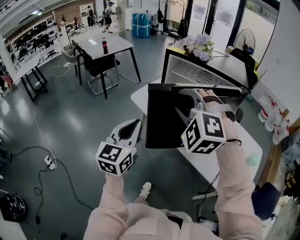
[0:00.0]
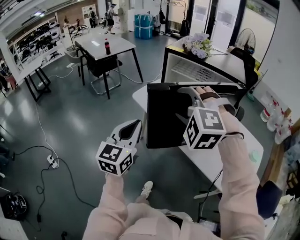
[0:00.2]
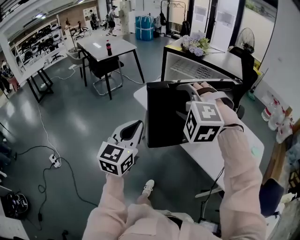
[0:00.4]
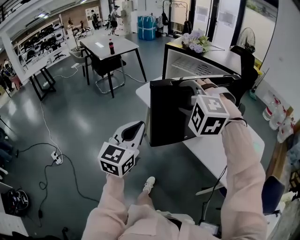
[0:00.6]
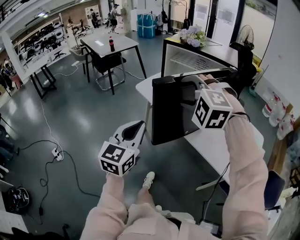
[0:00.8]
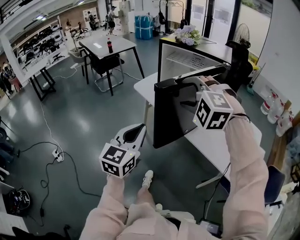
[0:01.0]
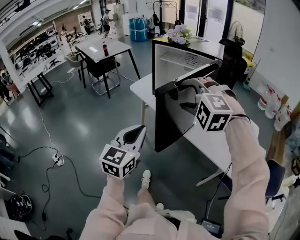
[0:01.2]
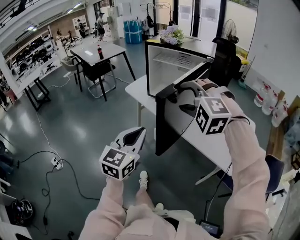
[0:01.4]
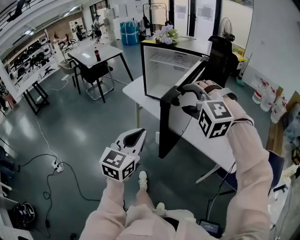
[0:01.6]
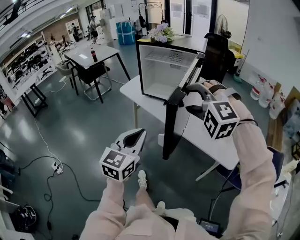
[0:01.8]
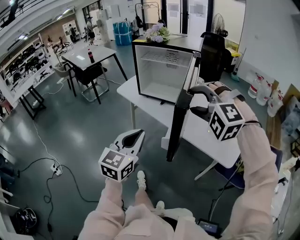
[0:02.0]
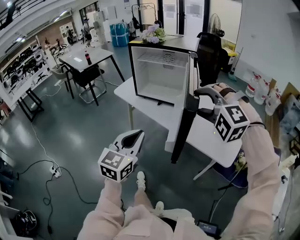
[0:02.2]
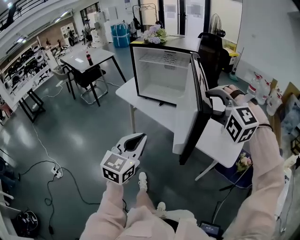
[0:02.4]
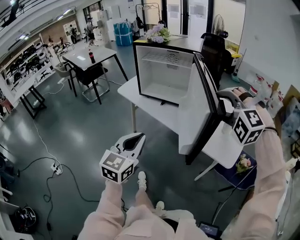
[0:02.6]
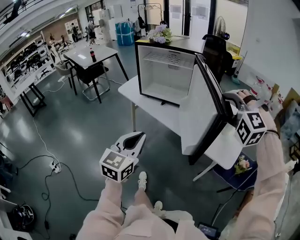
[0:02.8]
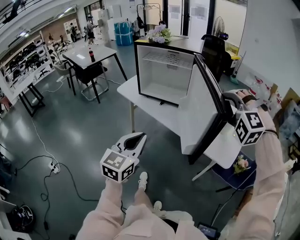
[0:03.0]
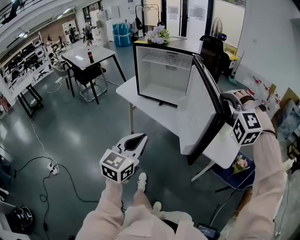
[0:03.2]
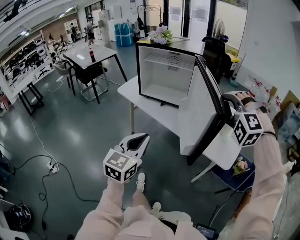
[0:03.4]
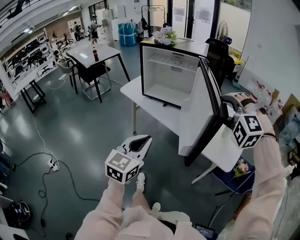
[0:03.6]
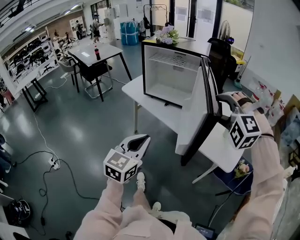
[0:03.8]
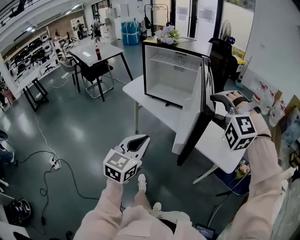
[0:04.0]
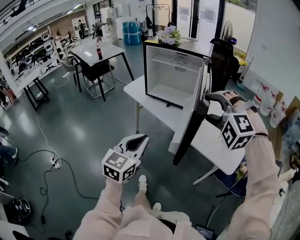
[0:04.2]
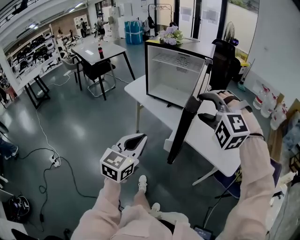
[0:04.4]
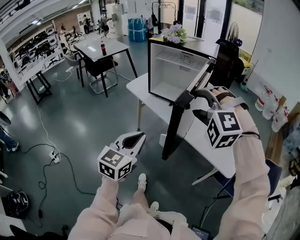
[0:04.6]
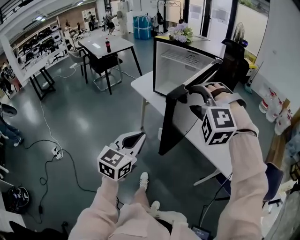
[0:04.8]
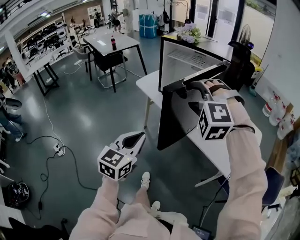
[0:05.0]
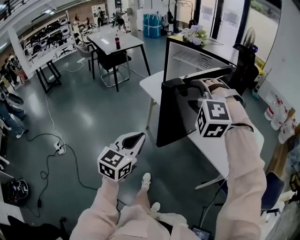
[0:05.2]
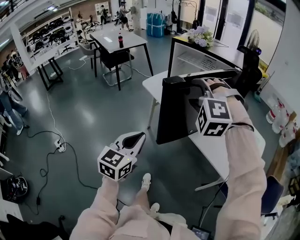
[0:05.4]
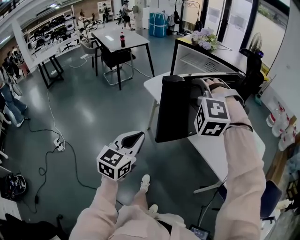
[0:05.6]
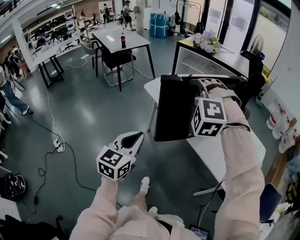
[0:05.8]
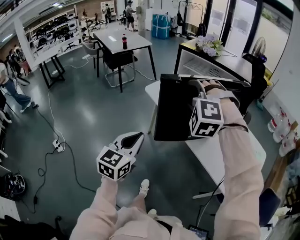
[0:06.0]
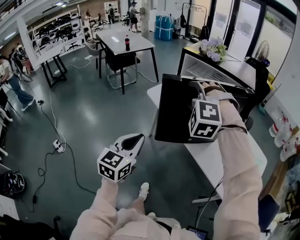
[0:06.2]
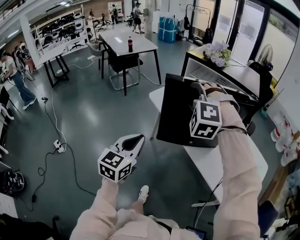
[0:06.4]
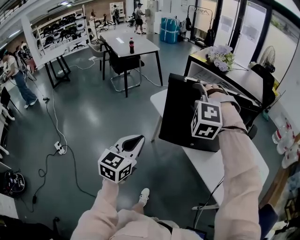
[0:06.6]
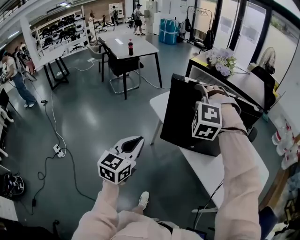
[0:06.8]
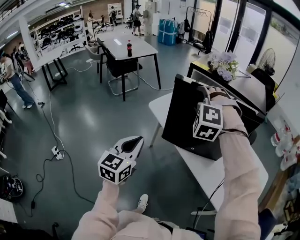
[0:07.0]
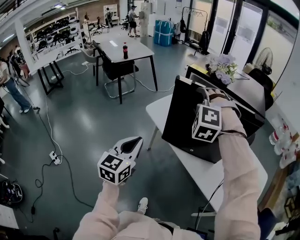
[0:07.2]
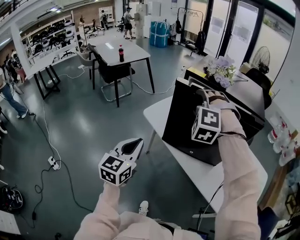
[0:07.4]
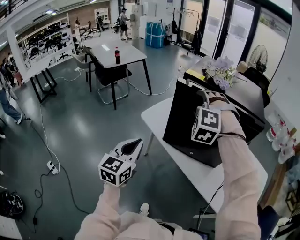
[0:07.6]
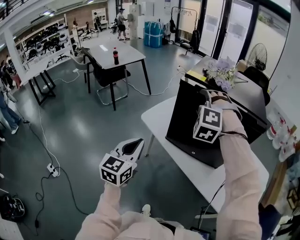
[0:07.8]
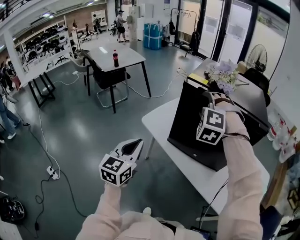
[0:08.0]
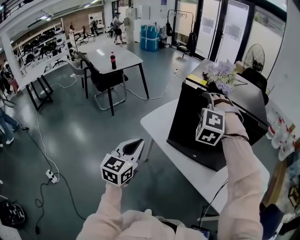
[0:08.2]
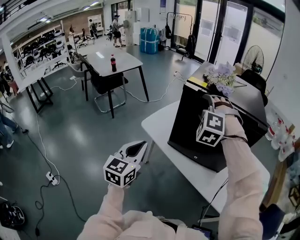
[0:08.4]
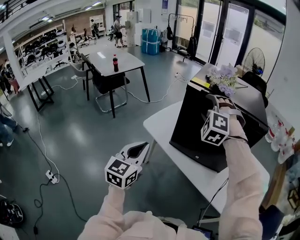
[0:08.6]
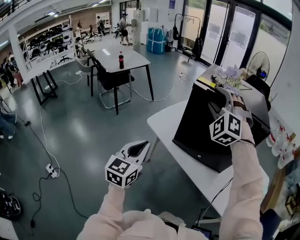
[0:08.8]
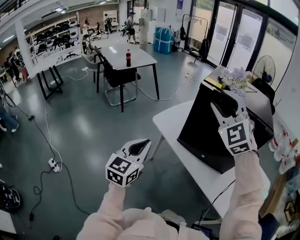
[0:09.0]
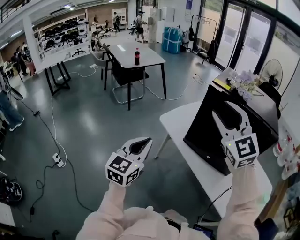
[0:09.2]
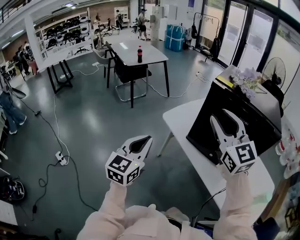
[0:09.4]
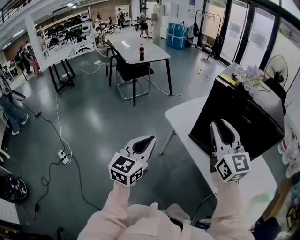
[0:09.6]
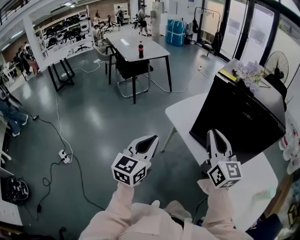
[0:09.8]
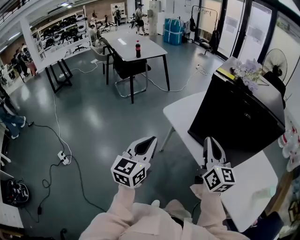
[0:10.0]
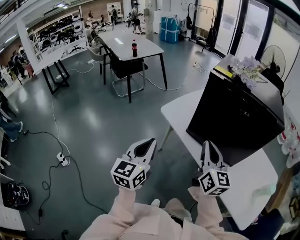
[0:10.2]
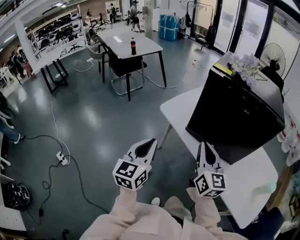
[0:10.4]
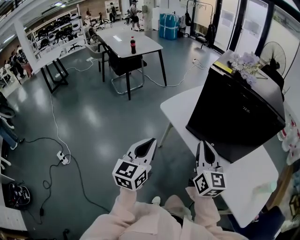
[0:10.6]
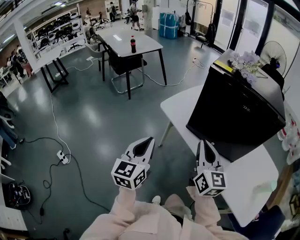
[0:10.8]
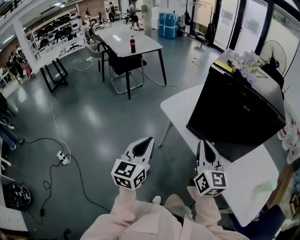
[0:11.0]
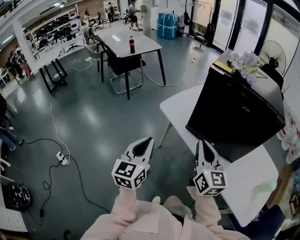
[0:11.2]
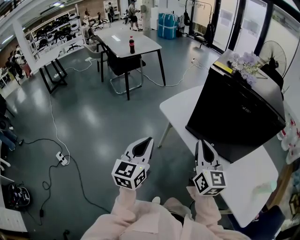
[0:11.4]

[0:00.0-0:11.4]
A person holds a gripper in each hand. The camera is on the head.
0:00.0 to 0:01.4: The two grippers go roughly 20 cm backward and to the right. The right gripper opens its fingers.
0:01.4 to 0:02.8: The right gripper moves to the right, some 20 cm.
0:02.8 to 0:04.2: The right gripper heads to the left, covering roughly 10 cm.
0:04.2 to 0:05.6: The right gripper shifts roughly 20 cm to the left and forward, while the left gripper moves to the left and forward, approximately 10 cm.
0:05.6 to 0:07.2: The left gripper heads forward and to the left, covering about 20 cm. Meanwhile the right gripper is displaced forward by roughly 25 cm.
0:07.2 to 0:08.6: The grippers both shift forward by approximately 5 cm.
0:08.6 to 0:10.0: The left gripper goes some 5 cm backward. Meanwhile the right gripper goes about 20 cm backward and downward, rolls clockwise, seen from behind, by roughly 100 degrees, and closes.
0:10.0 to 0:11.4: There are only small adjustments of the grippers.

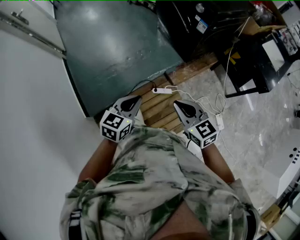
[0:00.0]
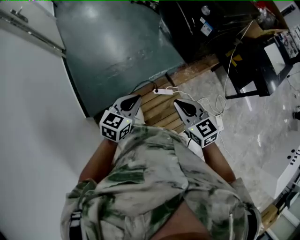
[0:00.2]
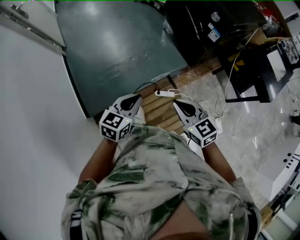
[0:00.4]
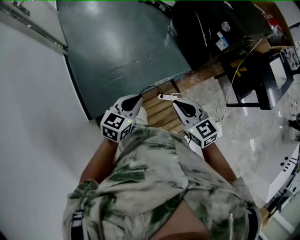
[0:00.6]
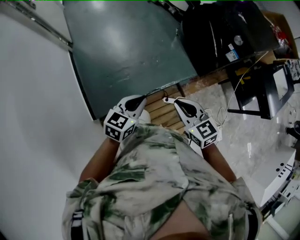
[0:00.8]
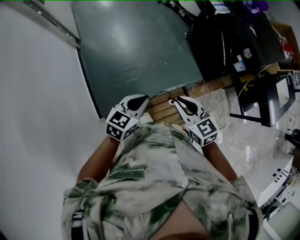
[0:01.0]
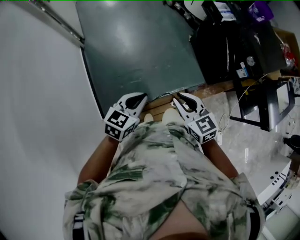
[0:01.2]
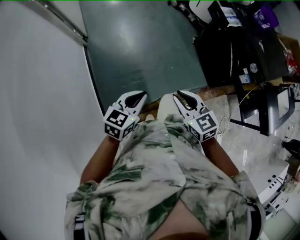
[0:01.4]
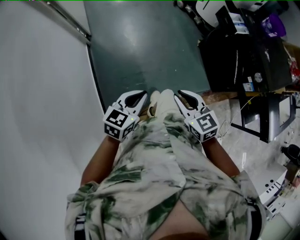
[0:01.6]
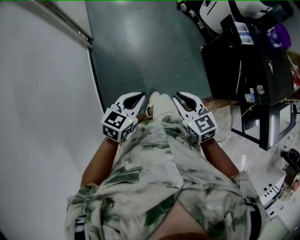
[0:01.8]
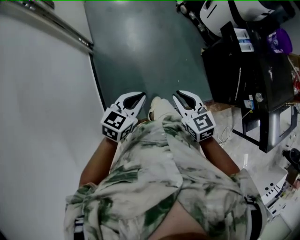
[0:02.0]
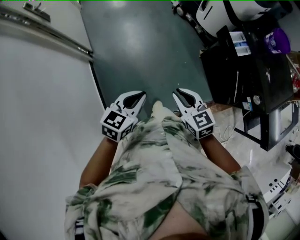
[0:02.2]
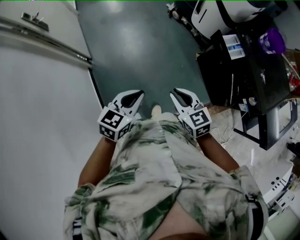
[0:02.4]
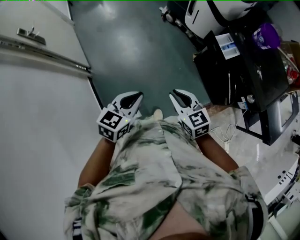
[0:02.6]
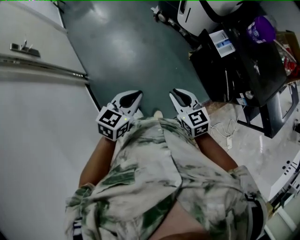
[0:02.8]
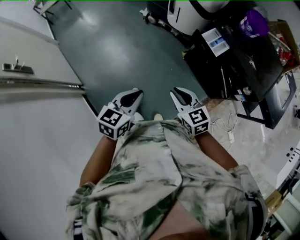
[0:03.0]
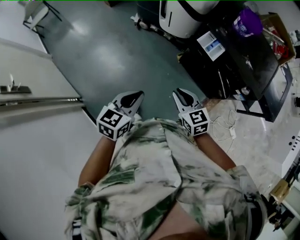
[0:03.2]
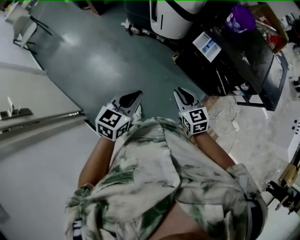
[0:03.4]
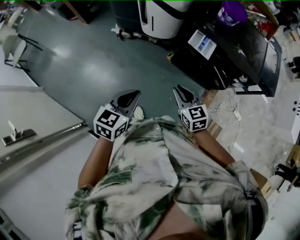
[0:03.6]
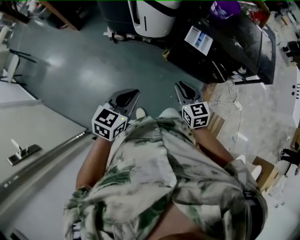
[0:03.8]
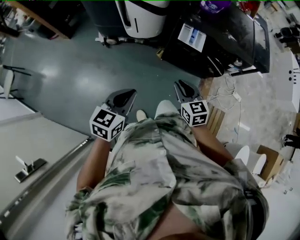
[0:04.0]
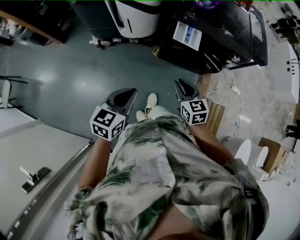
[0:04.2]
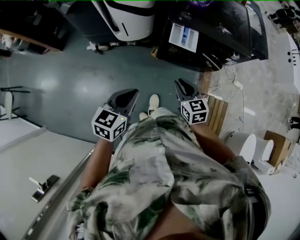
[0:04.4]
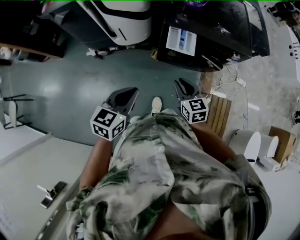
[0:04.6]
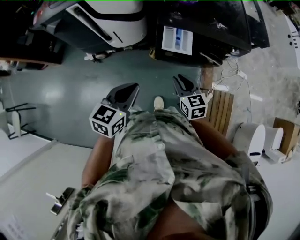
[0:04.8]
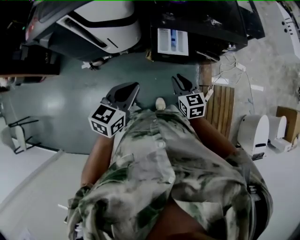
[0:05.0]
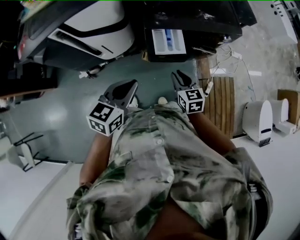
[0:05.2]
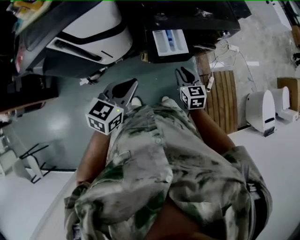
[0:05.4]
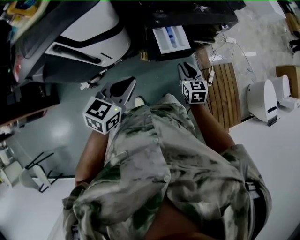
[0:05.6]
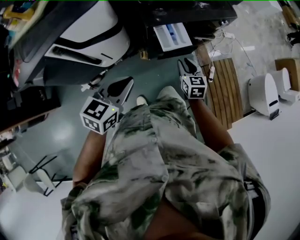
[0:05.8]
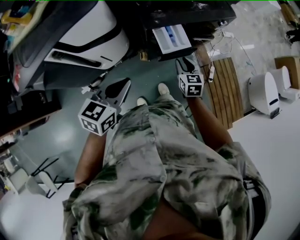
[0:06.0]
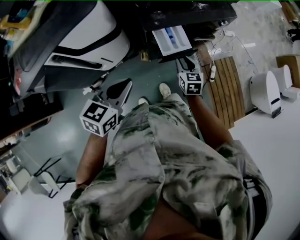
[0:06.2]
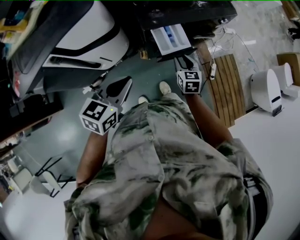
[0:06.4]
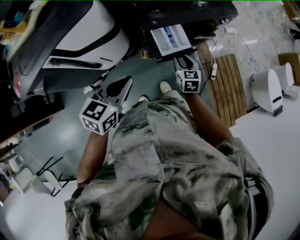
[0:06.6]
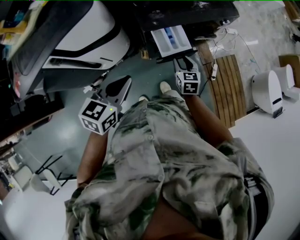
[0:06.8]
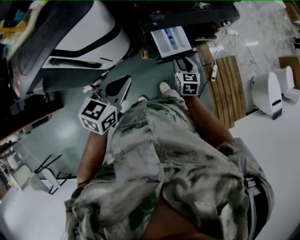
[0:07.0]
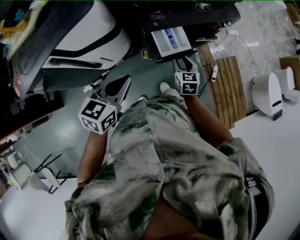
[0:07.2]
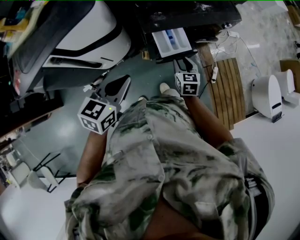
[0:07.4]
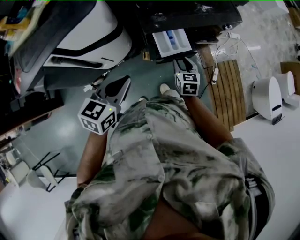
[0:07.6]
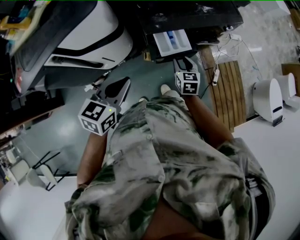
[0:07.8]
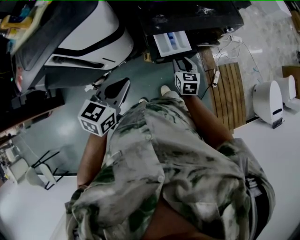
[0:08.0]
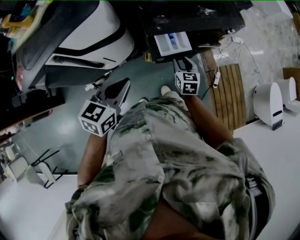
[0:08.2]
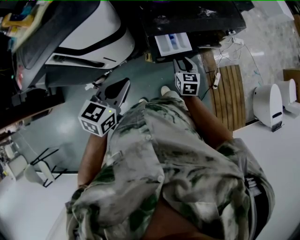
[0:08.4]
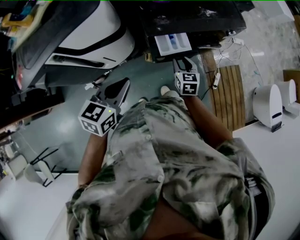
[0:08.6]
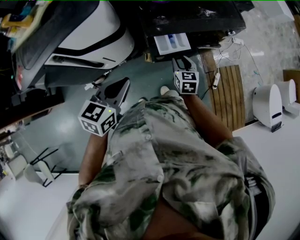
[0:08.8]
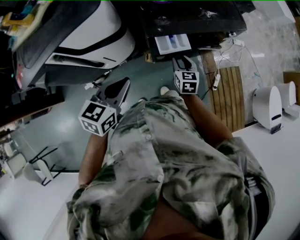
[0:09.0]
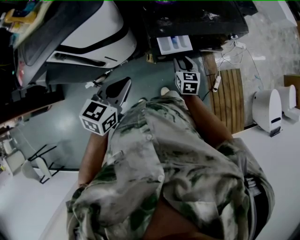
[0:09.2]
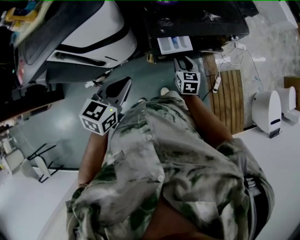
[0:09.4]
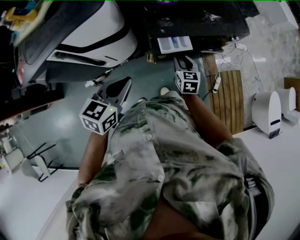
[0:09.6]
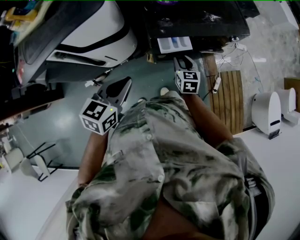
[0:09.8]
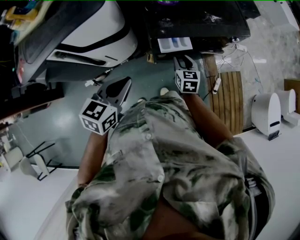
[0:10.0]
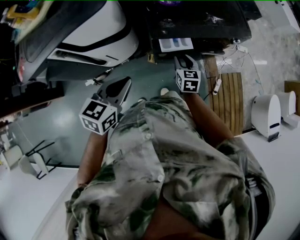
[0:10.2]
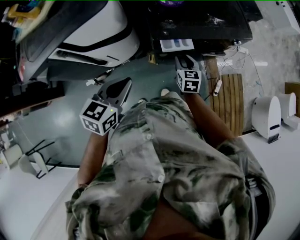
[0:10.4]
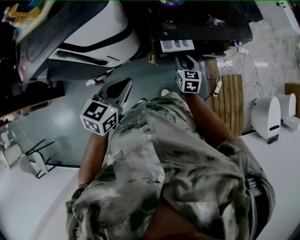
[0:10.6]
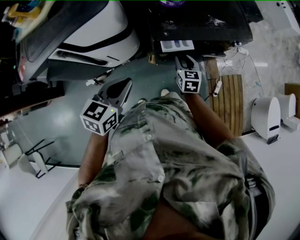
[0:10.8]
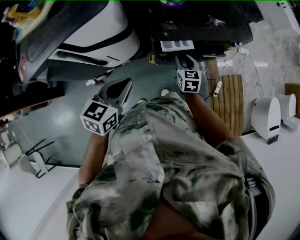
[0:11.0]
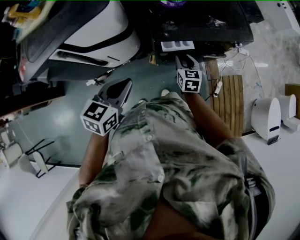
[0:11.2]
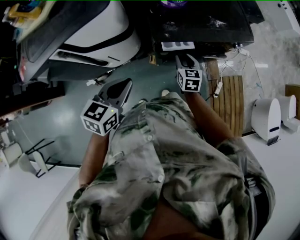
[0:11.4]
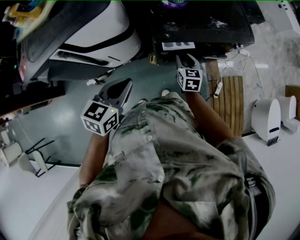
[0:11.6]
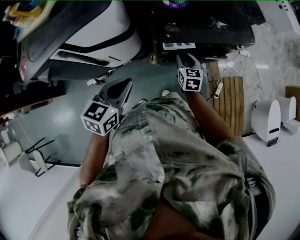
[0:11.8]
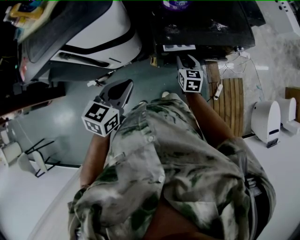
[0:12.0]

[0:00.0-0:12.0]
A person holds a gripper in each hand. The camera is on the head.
0:00.0 to 0:01.6: Both grippers are carried forward and to the left, some 50 cm.
0:01.6 to 0:03.0: The grippers both shift forward by approximately 35 cm. The right gripper turns by some 20 degrees.
0:03.0 to 0:04.4: The left gripper ends up about 30 cm from where it was, and changes its angle by about 40 degrees; the right gripper moves about 20 cm, and rotates about 50 degrees.
0:04.4 to 0:06.0: The left gripper ends up roughly 25 cm from where it was, and turns by about 30 degrees. Meanwhile the right gripper changes place by about 20 cm, and rotates approximately 40 degrees.
0:06.0 to 0:07.6: Both grippers move forward, roughly 5 cm.
0:07.6 to 0:09.0: The grippers move only a little.
0:09.0 to 0:10.4: The grippers stay close to where they were, moving slightly.
0:10.4 to 0:12.0: There are only small adjustments of the grippers.
